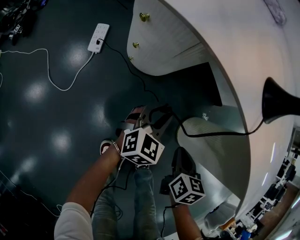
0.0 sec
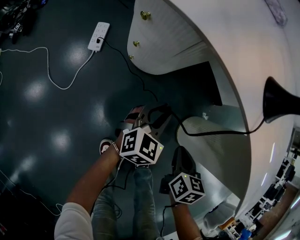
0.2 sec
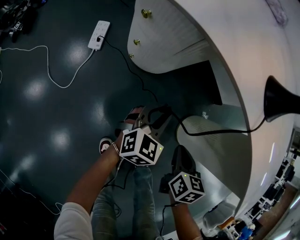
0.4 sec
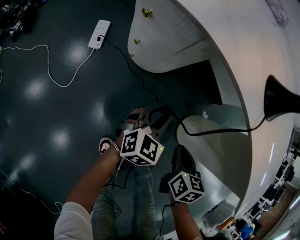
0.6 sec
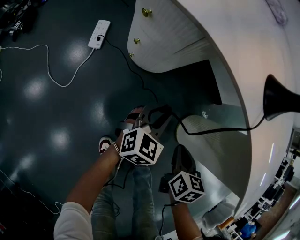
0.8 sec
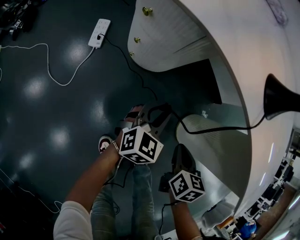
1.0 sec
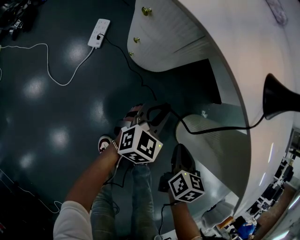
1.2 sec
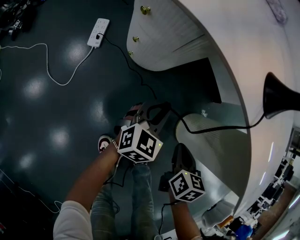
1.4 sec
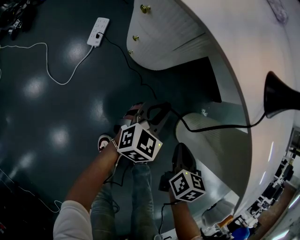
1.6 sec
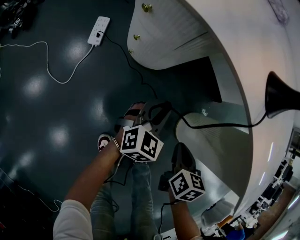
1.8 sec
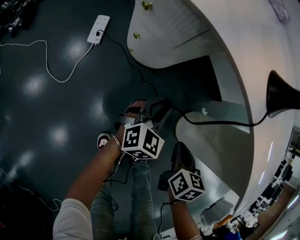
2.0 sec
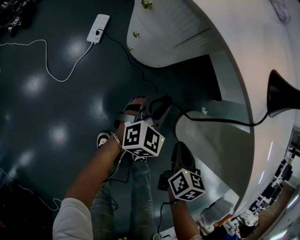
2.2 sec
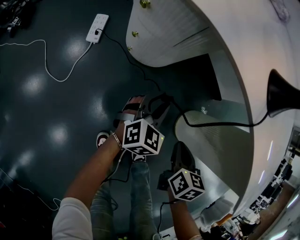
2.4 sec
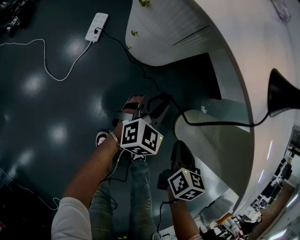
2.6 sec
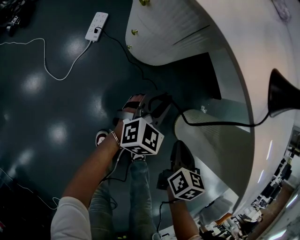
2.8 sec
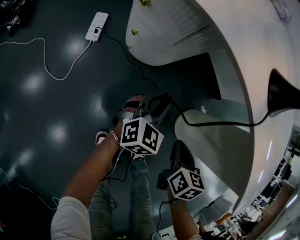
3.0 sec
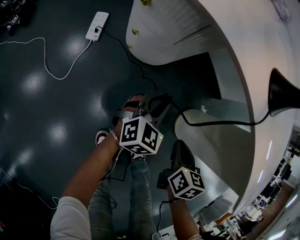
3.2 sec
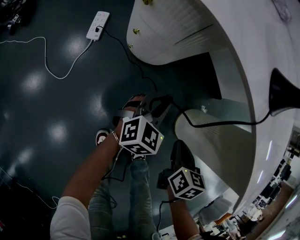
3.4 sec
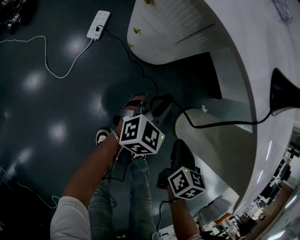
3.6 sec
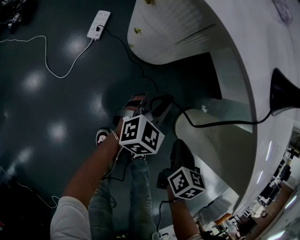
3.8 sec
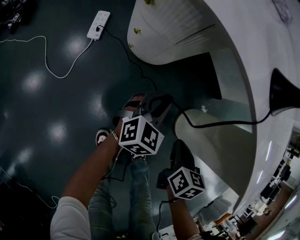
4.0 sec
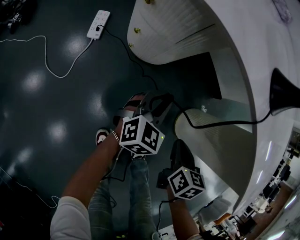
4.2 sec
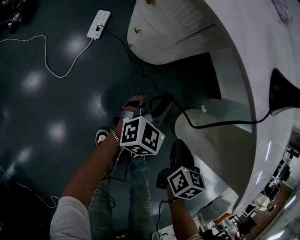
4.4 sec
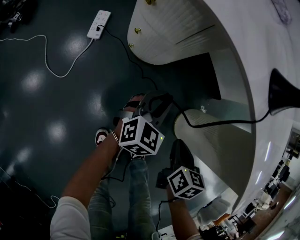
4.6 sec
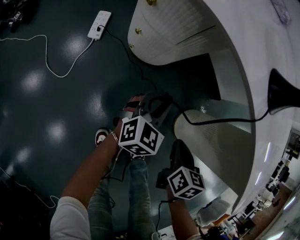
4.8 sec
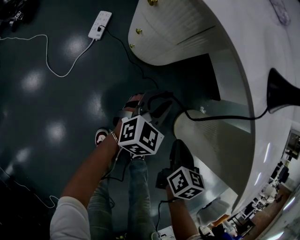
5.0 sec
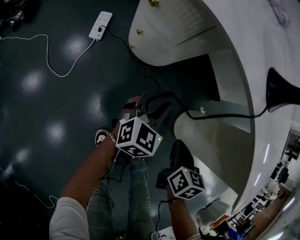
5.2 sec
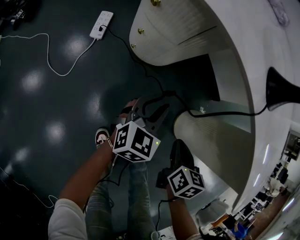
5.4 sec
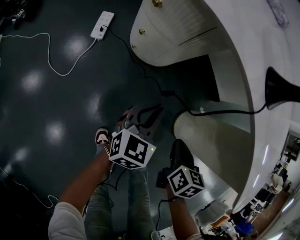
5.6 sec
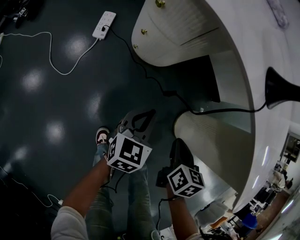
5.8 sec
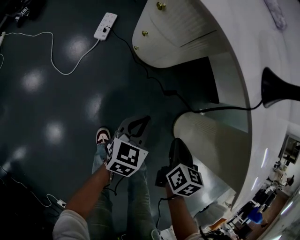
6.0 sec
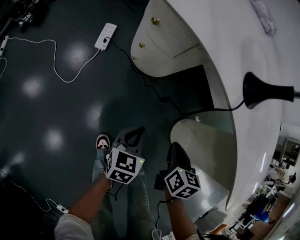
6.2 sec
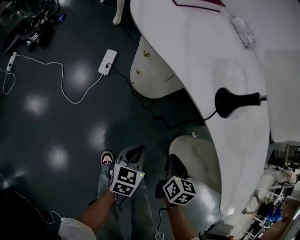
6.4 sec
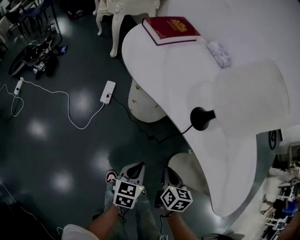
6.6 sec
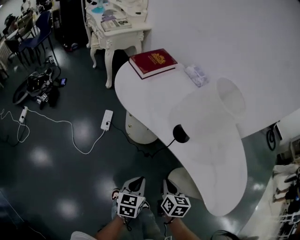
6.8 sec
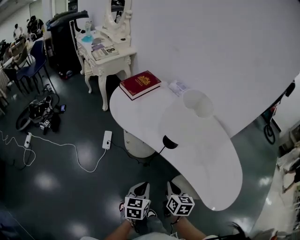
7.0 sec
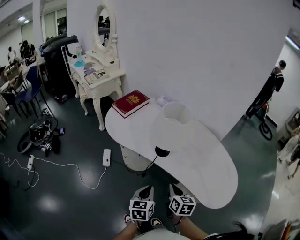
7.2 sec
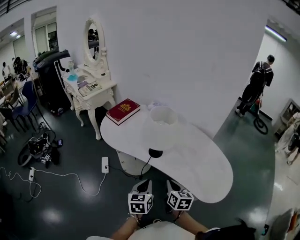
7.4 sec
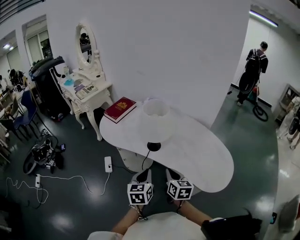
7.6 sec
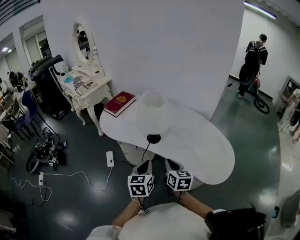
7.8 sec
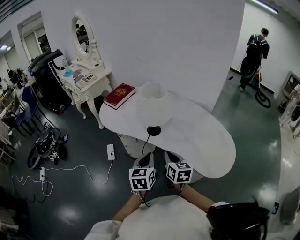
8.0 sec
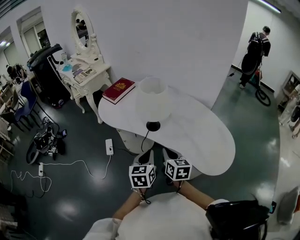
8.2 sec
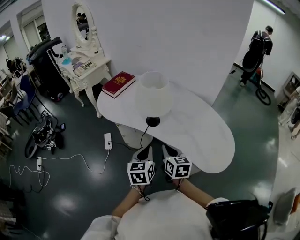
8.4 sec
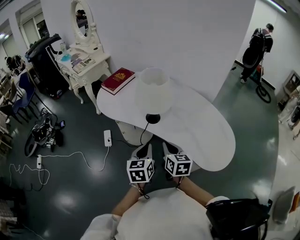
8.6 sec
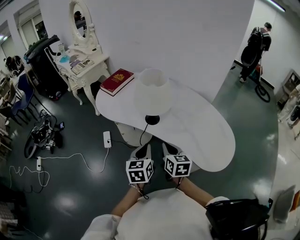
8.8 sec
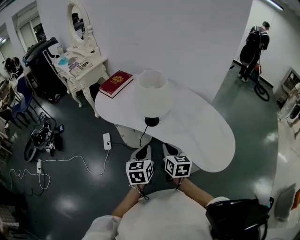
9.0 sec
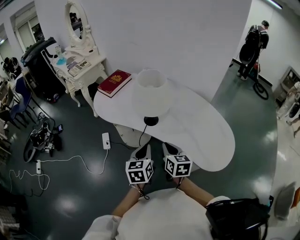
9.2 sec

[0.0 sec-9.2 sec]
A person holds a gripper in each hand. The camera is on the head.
0.0 sec to 1.6 sec: Both grippers stay put.
1.6 sec to 3.0 sec: There are only small adjustments of the grippers.
3.0 sec to 4.6 sec: The two grippers keep their place.
4.6 sec to 6.2 sec: The left gripper moves backward, approximately 15 cm, and turns by about 30 degrees.
6.2 sec to 7.6 sec: The grippers both shift upward by roughly 50 cm. The right gripper rotates about 30 degrees.
7.6 sec to 9.2 sec: The grippers stay close to where they were, moving slightly.

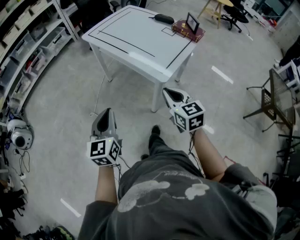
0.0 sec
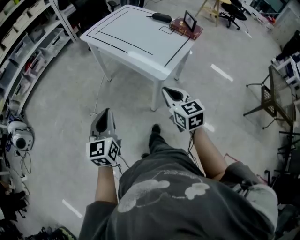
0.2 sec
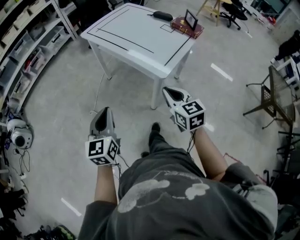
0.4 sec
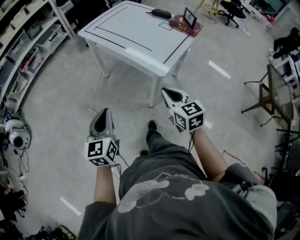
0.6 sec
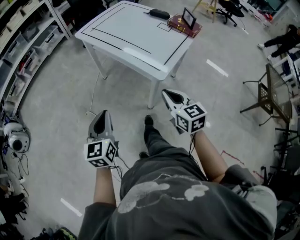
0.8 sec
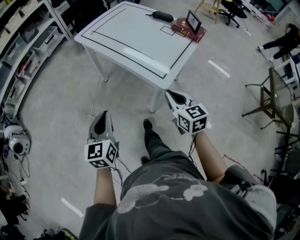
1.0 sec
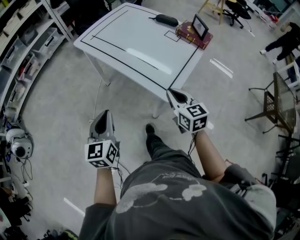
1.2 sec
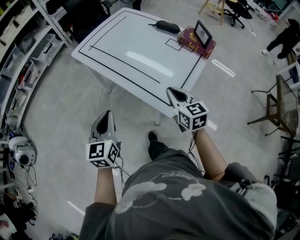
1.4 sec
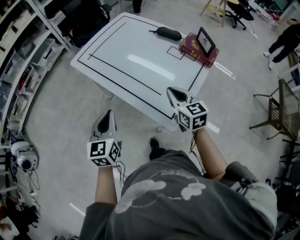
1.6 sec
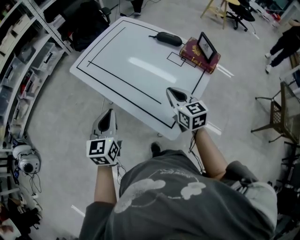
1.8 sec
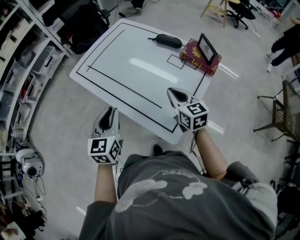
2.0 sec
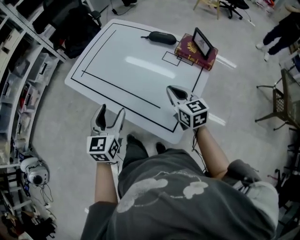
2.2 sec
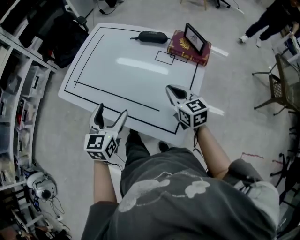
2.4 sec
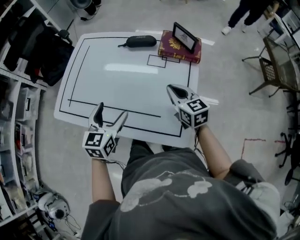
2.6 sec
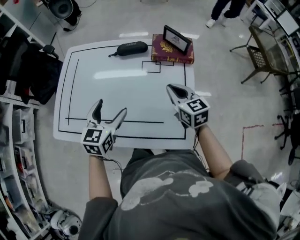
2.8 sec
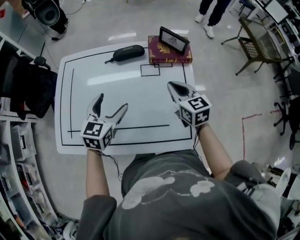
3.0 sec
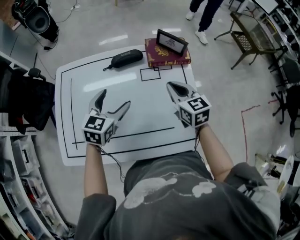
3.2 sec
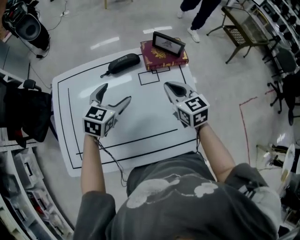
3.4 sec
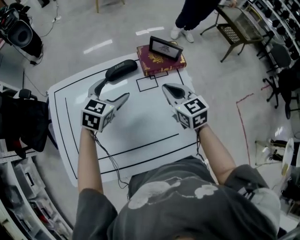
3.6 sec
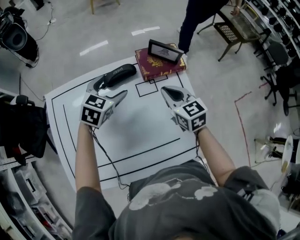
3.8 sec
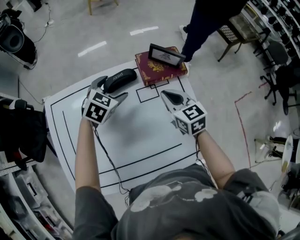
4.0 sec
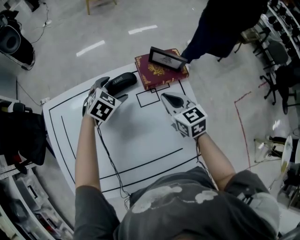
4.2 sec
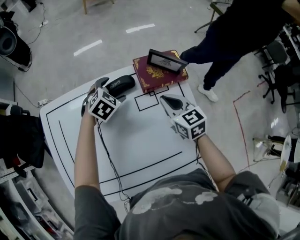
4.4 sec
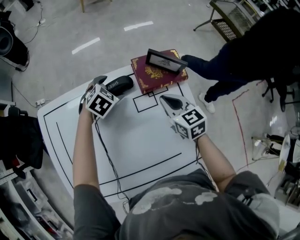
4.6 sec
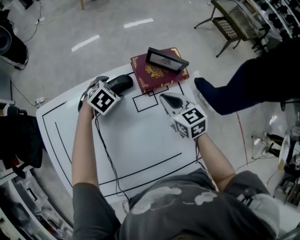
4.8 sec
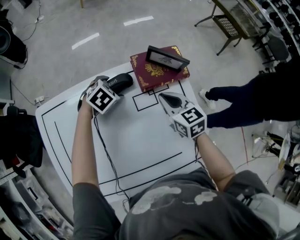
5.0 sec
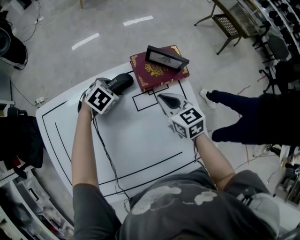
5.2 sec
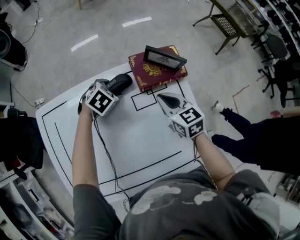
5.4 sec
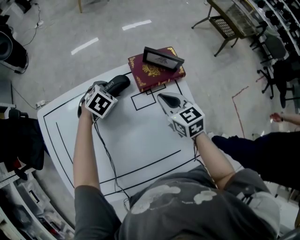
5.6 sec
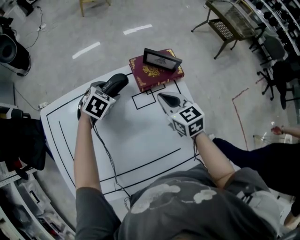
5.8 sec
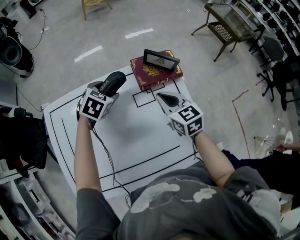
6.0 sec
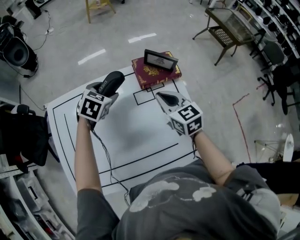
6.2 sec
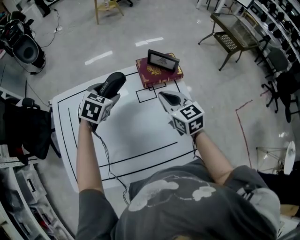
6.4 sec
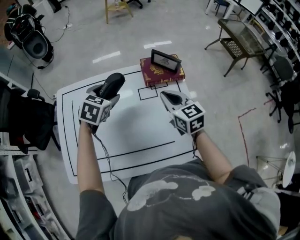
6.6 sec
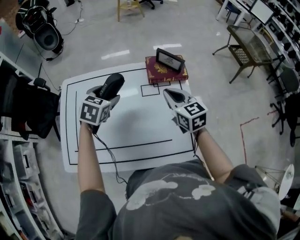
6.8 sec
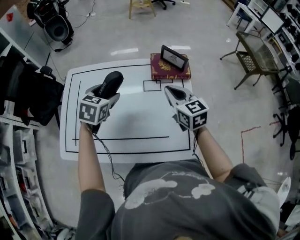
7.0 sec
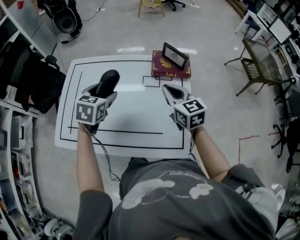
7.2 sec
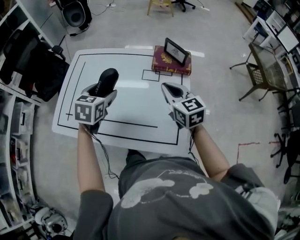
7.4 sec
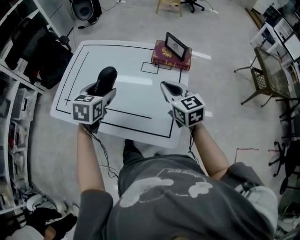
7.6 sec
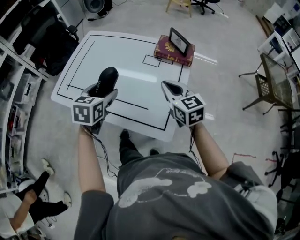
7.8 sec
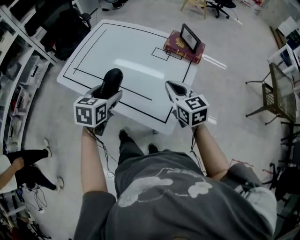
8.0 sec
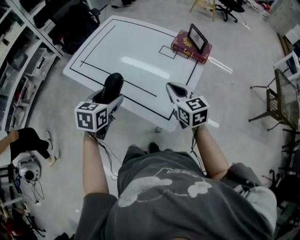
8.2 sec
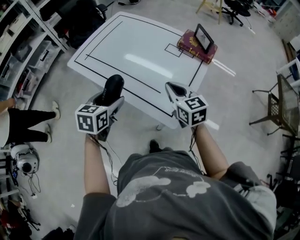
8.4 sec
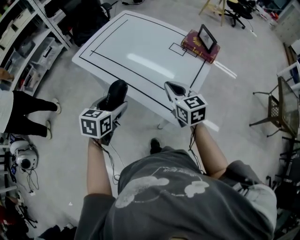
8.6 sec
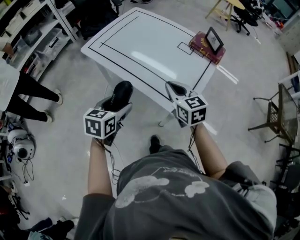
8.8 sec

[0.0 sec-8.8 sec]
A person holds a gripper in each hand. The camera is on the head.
0.0 sec to 1.4 sec: Both grippers travel together forward, about 20 cm.
1.4 sec to 3.0 sec: The left gripper changes place by some 40 cm, changes its angle by some 60 degrees, and opens up. Meanwhile the right gripper moves about 25 cm, and rotates about 40 degrees.
3.0 sec to 4.4 sec: The left gripper travels forward and downward by roughly 30 cm, and changes its angle by approximately 50 degrees. Meanwhile the right gripper shifts about 10 cm forward.
4.4 sec to 5.8 sec: There are only small adjustments of the grippers.
5.8 sec to 7.4 sec: The left gripper changes place by roughly 30 cm, and changes its angle by roughly 50 degrees; the right gripper ends up roughly 15 cm from where it was, and turns by about 30 degrees.
7.4 sec to 8.8 sec: The right gripper travels backward and to the left by roughly 20 cm, and swivels about 20 degrees; the left gripper is displaced backward by some 35 cm, and changes its angle by about 30 degrees.

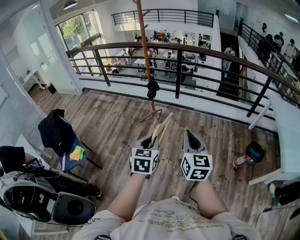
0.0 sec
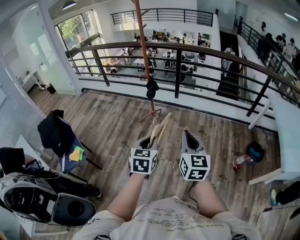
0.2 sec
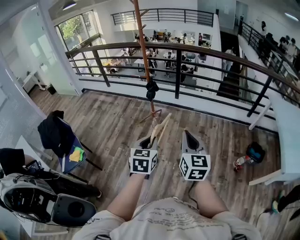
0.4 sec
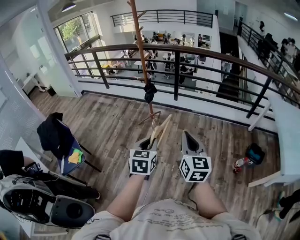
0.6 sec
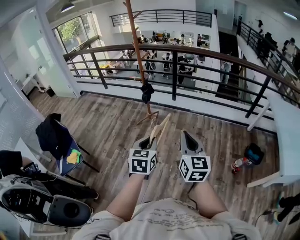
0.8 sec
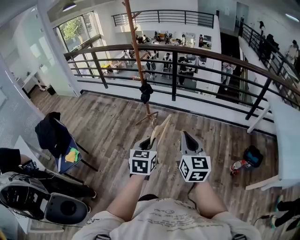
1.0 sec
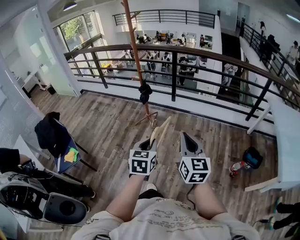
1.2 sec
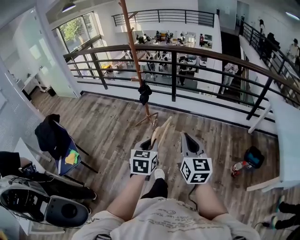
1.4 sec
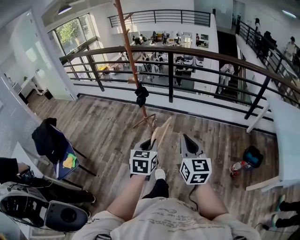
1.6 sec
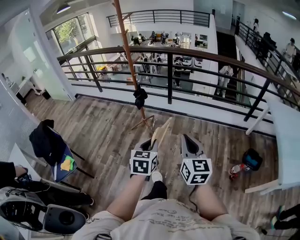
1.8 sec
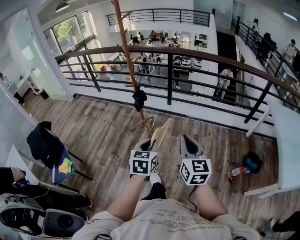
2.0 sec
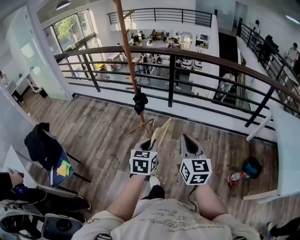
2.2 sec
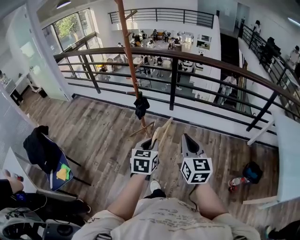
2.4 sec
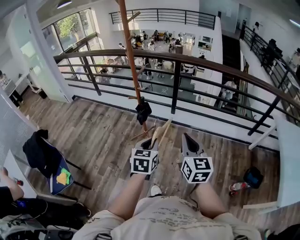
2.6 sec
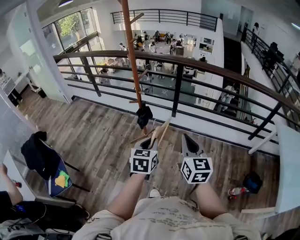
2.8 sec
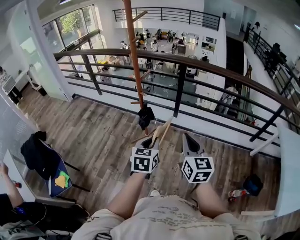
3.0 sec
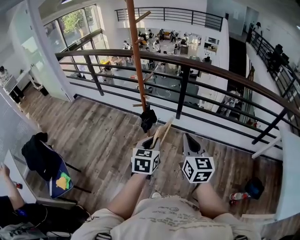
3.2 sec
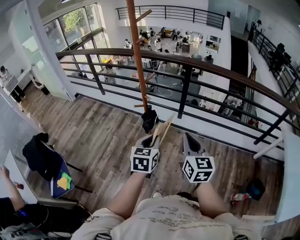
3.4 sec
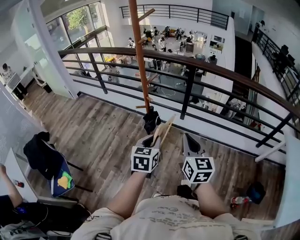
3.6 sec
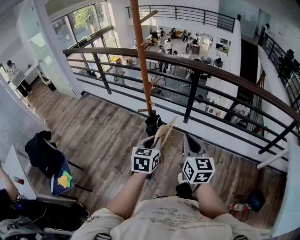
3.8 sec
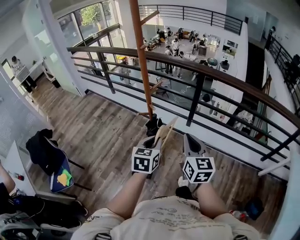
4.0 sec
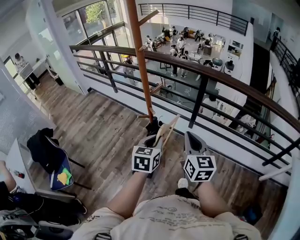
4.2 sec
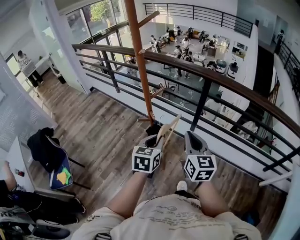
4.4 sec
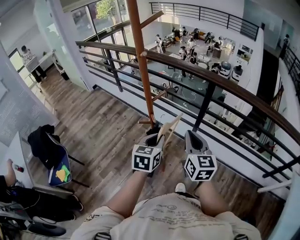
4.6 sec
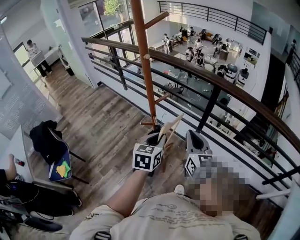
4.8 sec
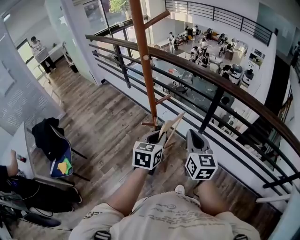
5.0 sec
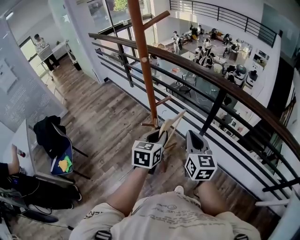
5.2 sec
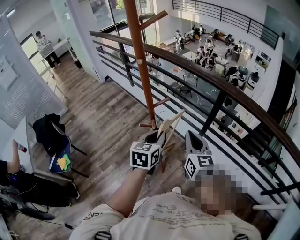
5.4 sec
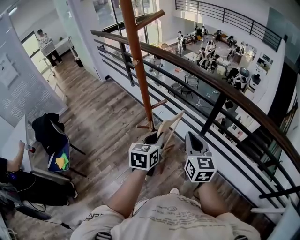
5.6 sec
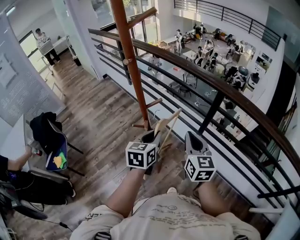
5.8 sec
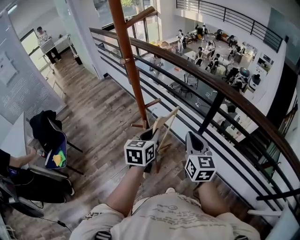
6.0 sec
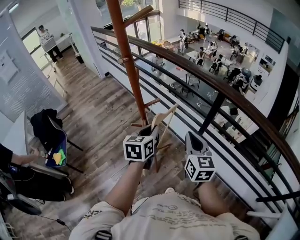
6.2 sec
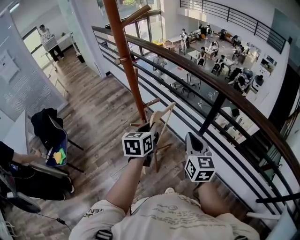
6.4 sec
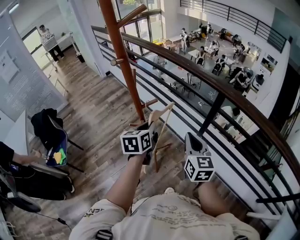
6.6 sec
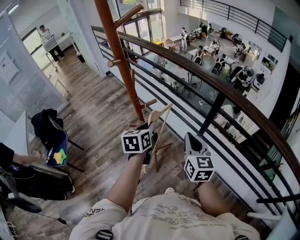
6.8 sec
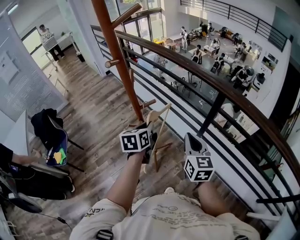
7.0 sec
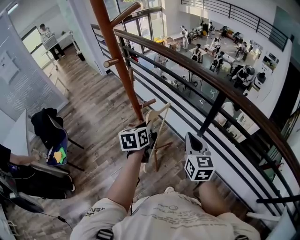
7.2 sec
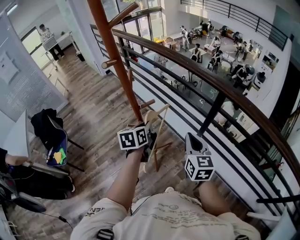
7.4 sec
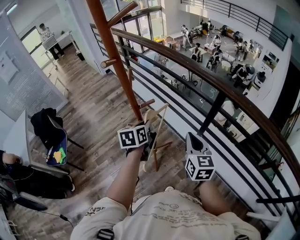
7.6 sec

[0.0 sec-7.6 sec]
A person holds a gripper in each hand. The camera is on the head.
0.0 sec to 1.6 sec: The grippers both shift to the right and forward by some 15 cm.
1.6 sec to 3.0 sec: The grippers both shift forward by some 35 cm.
3.0 sec to 4.6 sec: Both grippers move forward, some 25 cm.
4.6 sec to 6.0 sec: The left gripper heads forward, covering roughly 10 cm. The right gripper moves forward and to the right, approximately 10 cm.
6.0 sec to 7.6 sec: The left gripper is displaced forward by some 10 cm. The right gripper moves about 5 cm.
